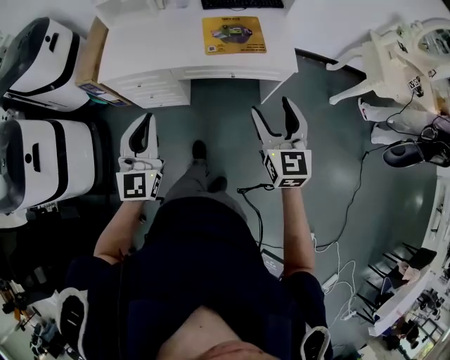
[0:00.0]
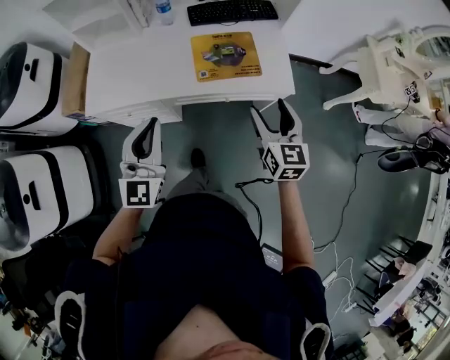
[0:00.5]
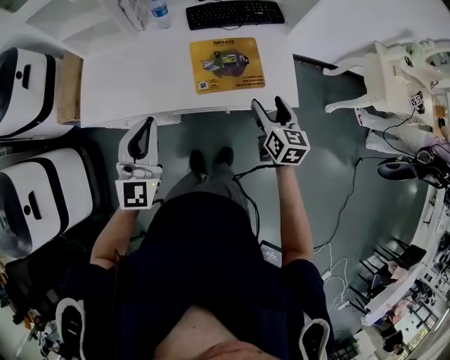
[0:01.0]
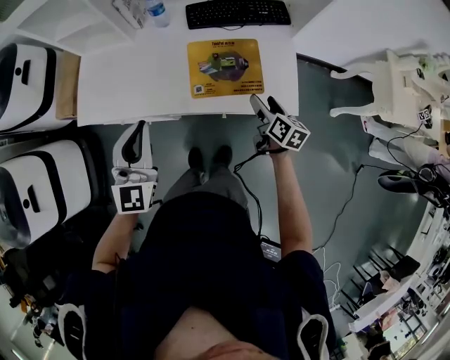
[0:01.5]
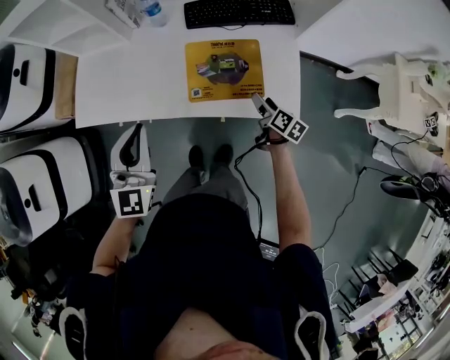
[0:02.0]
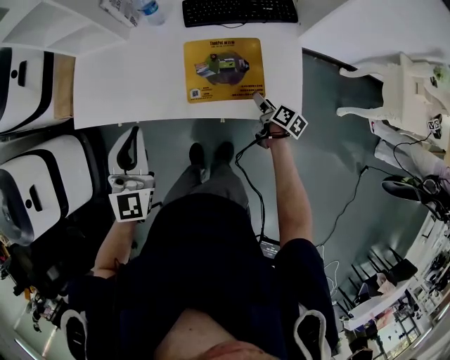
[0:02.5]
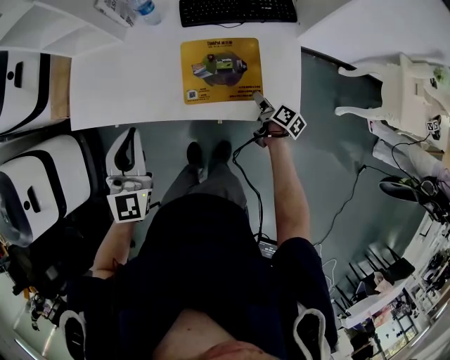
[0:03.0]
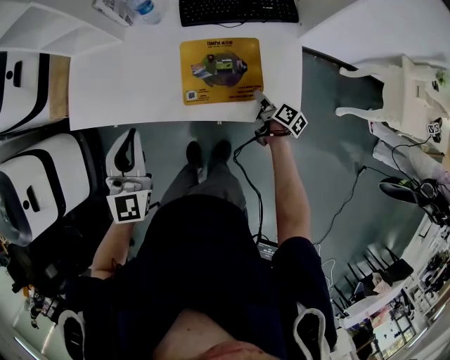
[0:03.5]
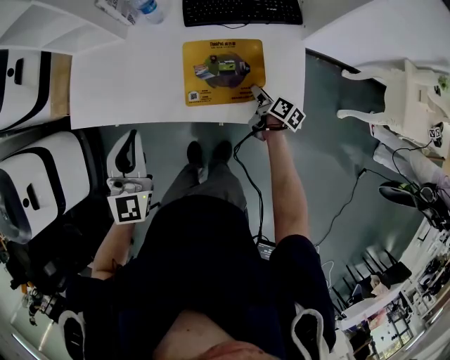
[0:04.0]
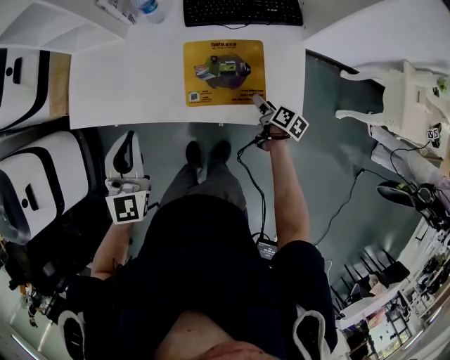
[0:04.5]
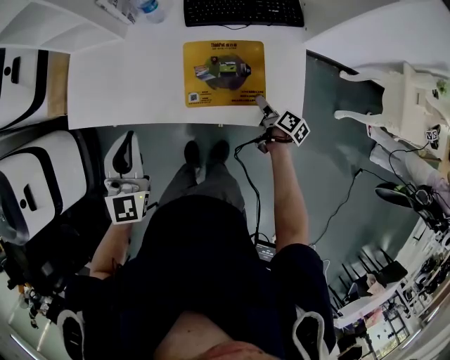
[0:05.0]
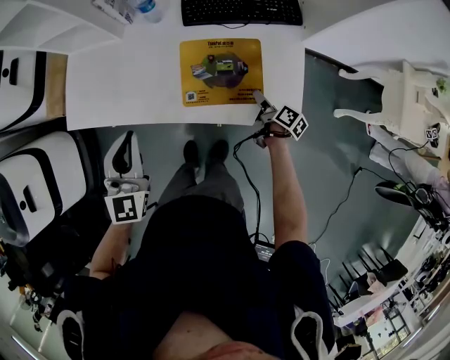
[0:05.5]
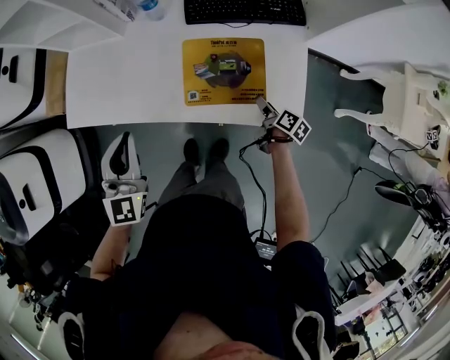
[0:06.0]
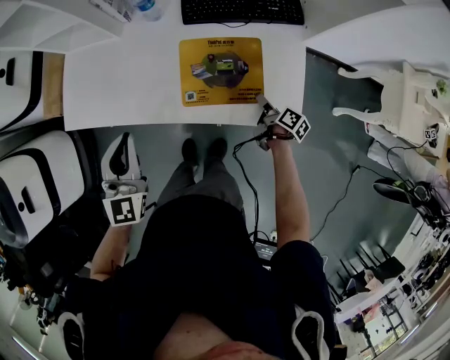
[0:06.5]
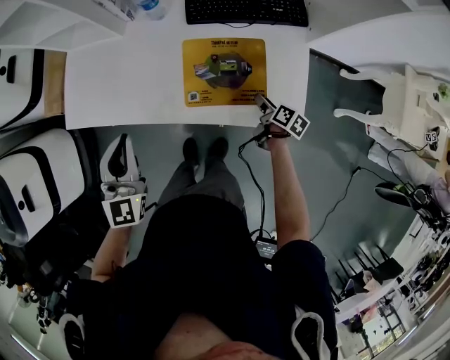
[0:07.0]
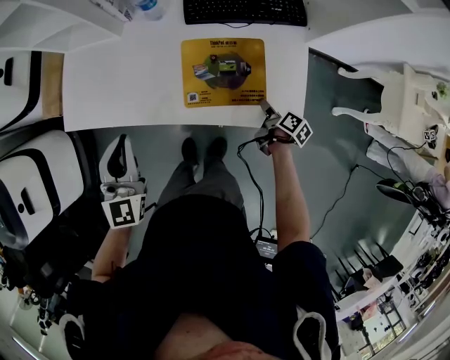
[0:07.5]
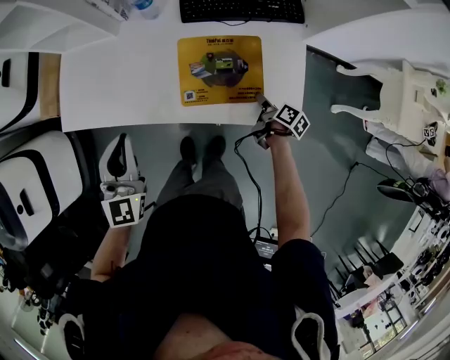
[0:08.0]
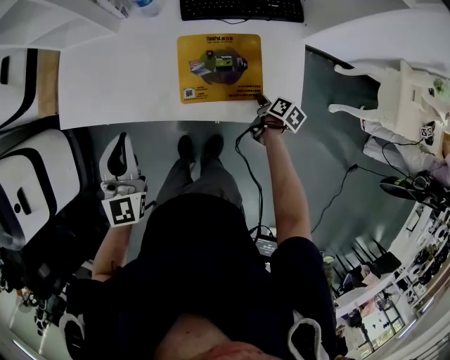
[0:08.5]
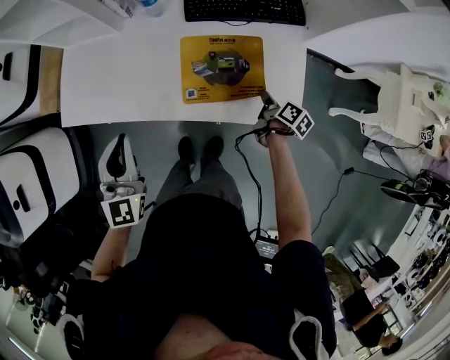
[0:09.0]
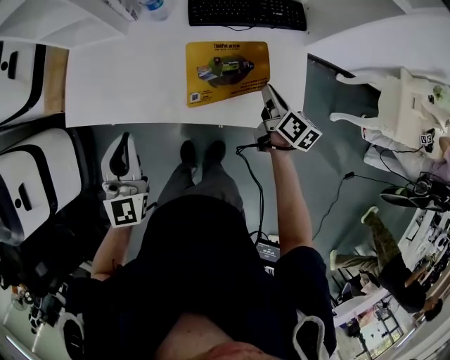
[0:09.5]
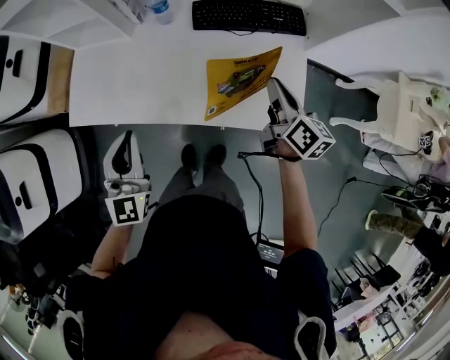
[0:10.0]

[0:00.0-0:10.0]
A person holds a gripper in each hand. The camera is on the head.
0.0 to 2.0 s: The right gripper travels forward and downward by some 50 cm, and twists about 60 degrees clockwise, seen from behind. The left gripper moves forward, some 30 cm.
2.0 to 4.0 s: The right gripper heads forward and downward, covering some 10 cm, and closes.
4.0 to 6.0 s: The grippers move only a little.
6.0 to 8.0 s: The right gripper closes.
8.0 to 10.0 s: The right gripper is displaced upward by some 25 cm, turns by approximately 40 degrees, and closes.

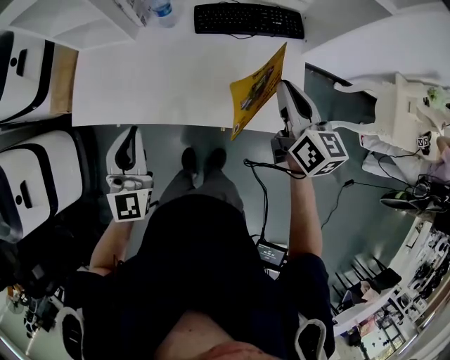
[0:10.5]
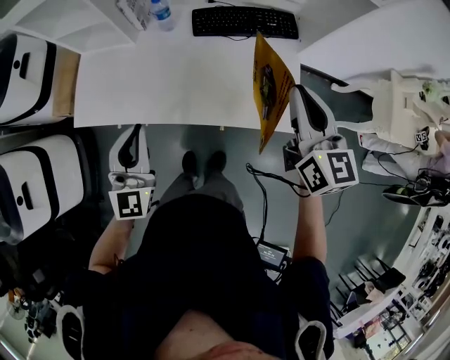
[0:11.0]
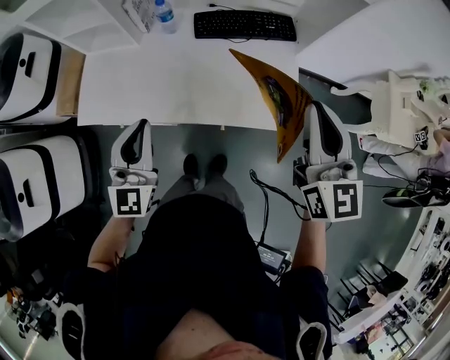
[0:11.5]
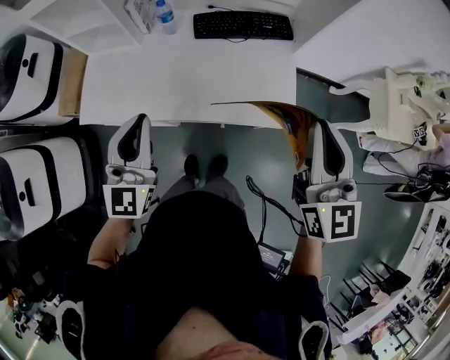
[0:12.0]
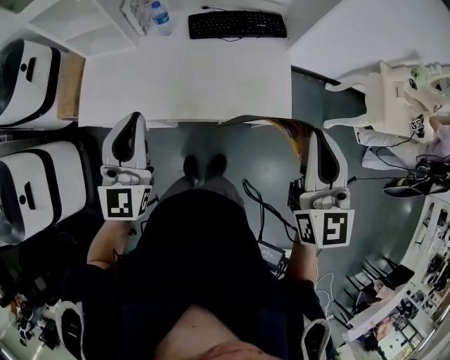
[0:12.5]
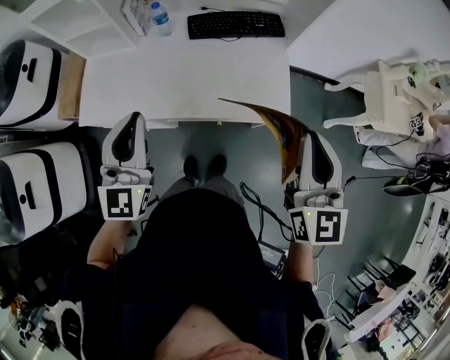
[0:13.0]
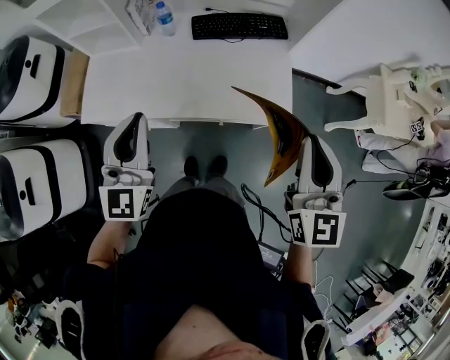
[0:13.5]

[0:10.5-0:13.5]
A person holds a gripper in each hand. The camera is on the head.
10.5 to 12.0 s: The left gripper is displaced upward by about 10 cm. The right gripper moves upward and backward, approximately 20 cm, and changes its angle by roughly 30 degrees.
12.0 to 13.5 s: The right gripper moves backward, approximately 5 cm.

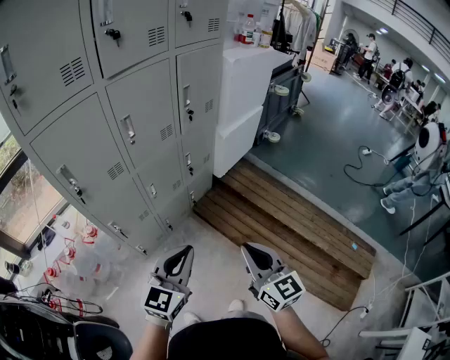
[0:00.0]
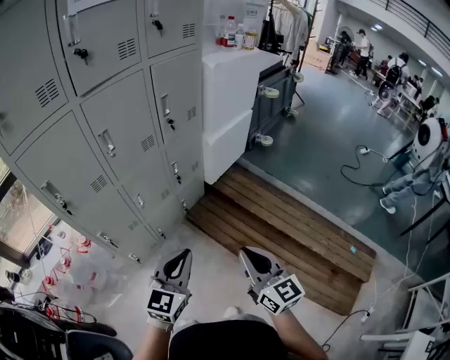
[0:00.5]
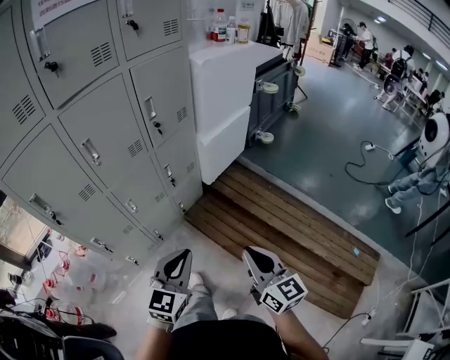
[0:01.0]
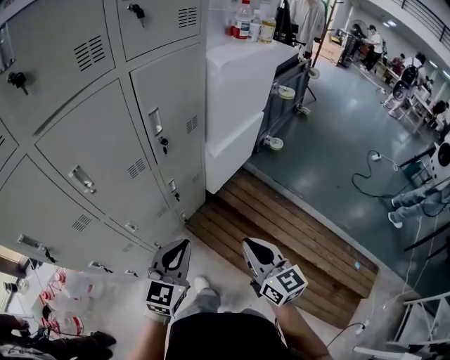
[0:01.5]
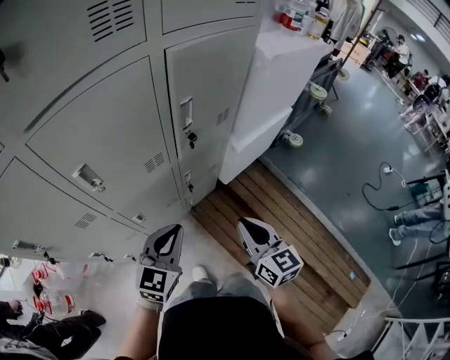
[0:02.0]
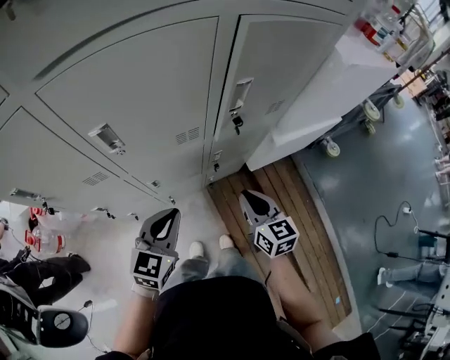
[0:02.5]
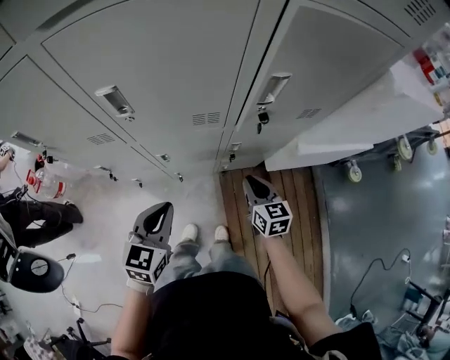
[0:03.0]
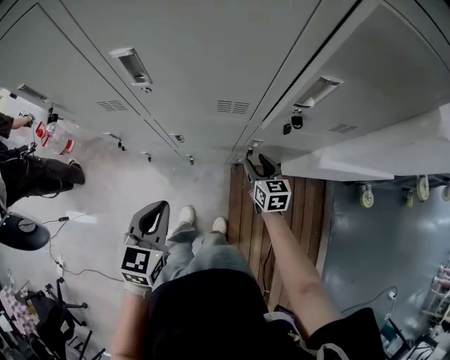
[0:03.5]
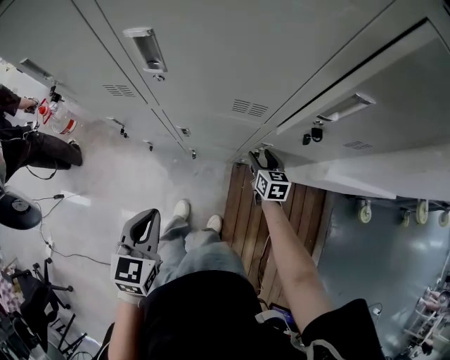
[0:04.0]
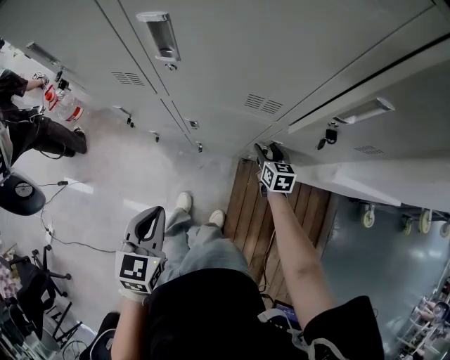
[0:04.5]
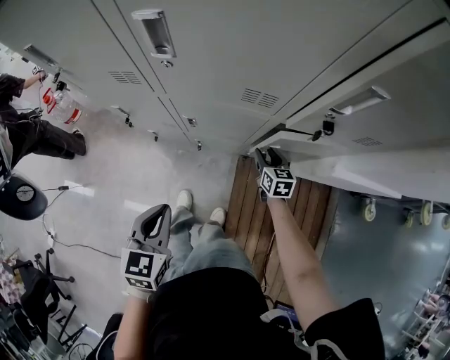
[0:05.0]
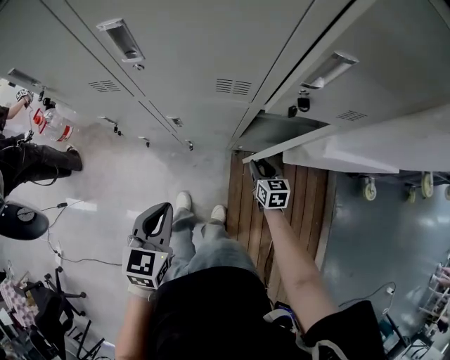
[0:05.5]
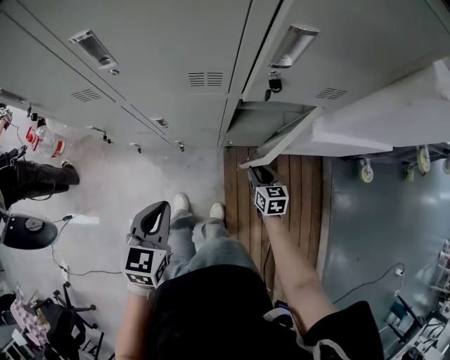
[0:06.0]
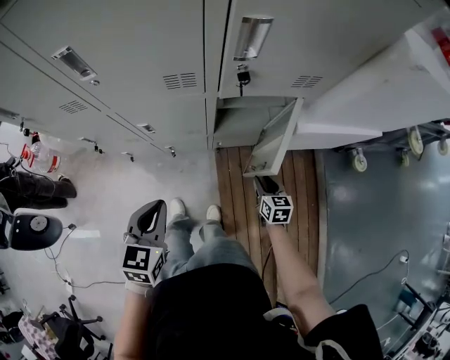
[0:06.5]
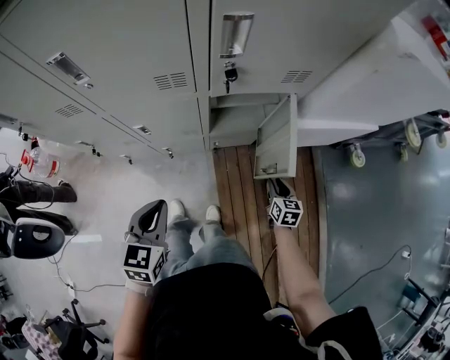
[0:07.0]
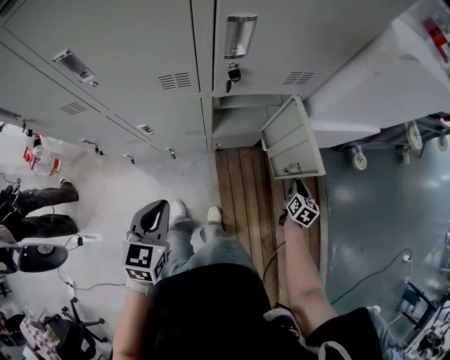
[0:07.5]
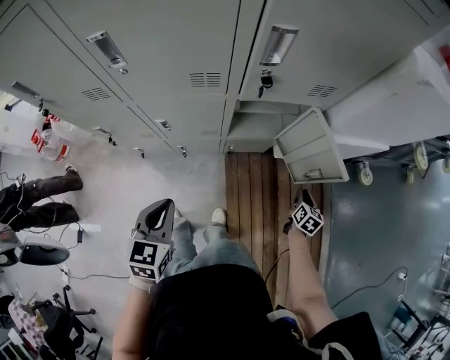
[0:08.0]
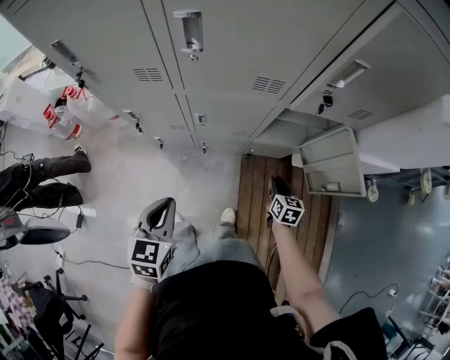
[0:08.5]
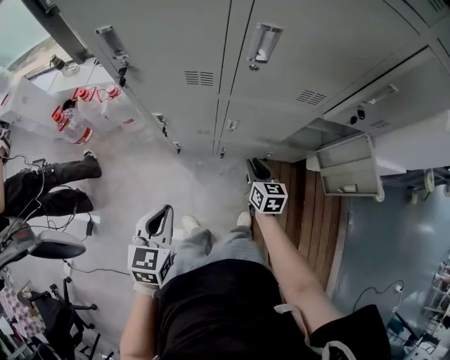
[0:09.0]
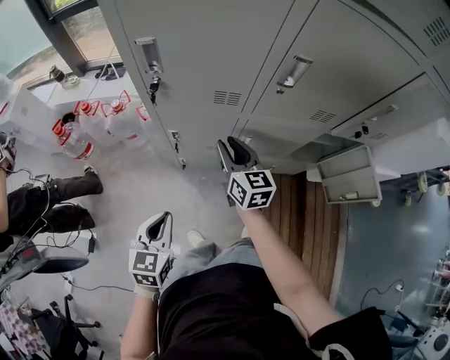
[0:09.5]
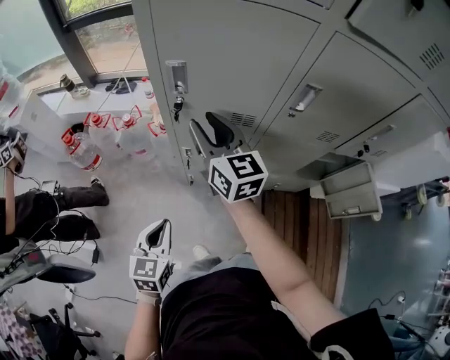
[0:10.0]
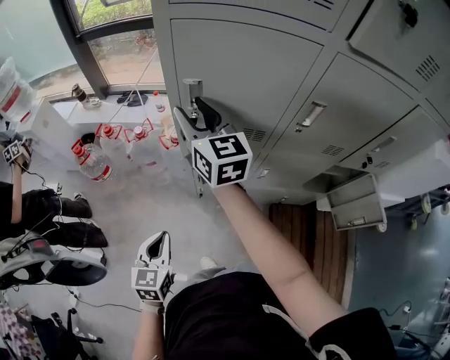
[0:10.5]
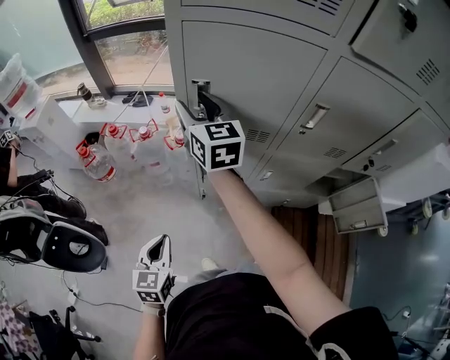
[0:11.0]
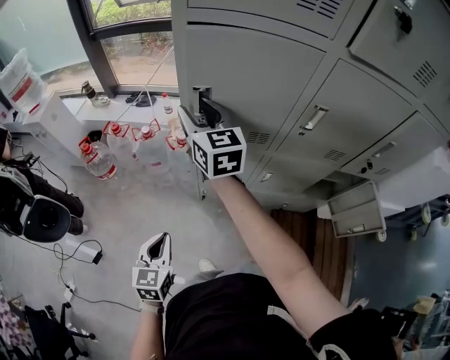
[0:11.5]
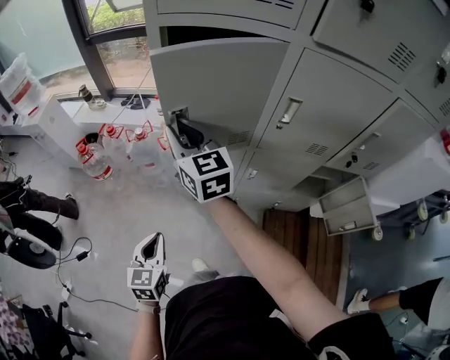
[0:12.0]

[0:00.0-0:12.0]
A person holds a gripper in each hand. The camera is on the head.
0.0 to 2.0 s: The two grippers go roughly 35 cm forward.
2.0 to 4.0 s: The left gripper heads downward, covering some 10 cm, and rotates about 60 degrees; the right gripper moves downward, approximately 30 cm, changes its angle by some 40 degrees, and opens up.
4.0 to 6.0 s: The right gripper goes roughly 15 cm backward, and closes its fingers. Meanwhile the left gripper moves to the right, approximately 5 cm.
6.0 to 8.0 s: The right gripper heads to the right, covering roughly 25 cm, and swivels approximately 40 degrees.
8.0 to 10.0 s: The right gripper shifts by roughly 90 cm, and points its fingers some 40 degrees further upward. Meanwhile the left gripper ends up roughly 40 cm from where it was.
10.0 to 12.0 s: The right gripper heads to the left and upward, covering approximately 10 cm, and moves some 5 cm forward and comes back. Meanwhile the left gripper goes about 5 cm backward.

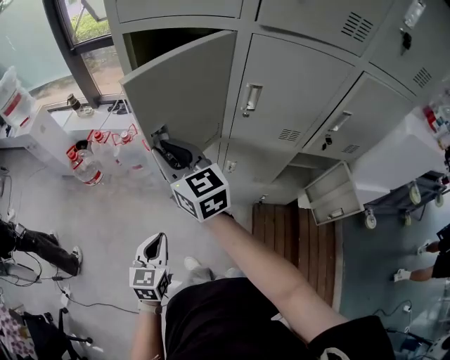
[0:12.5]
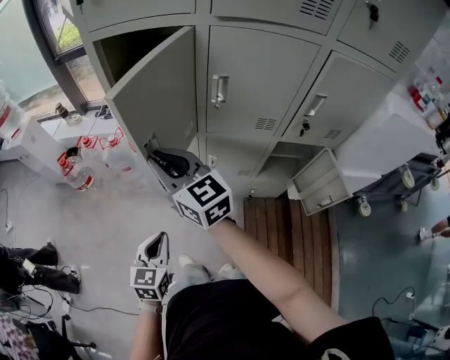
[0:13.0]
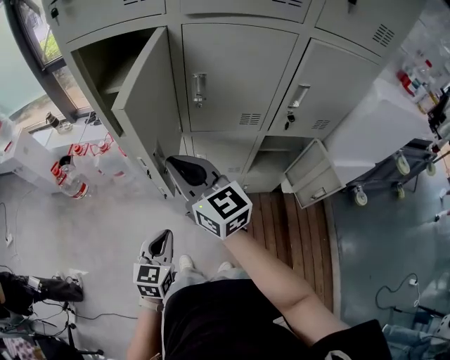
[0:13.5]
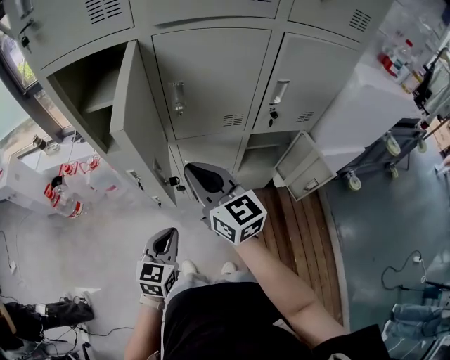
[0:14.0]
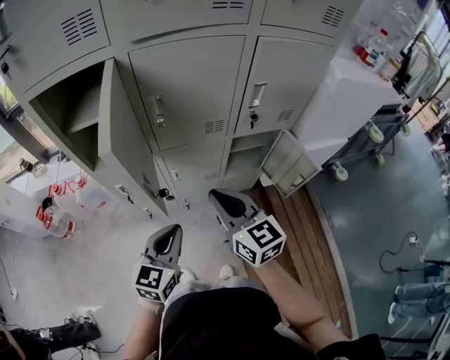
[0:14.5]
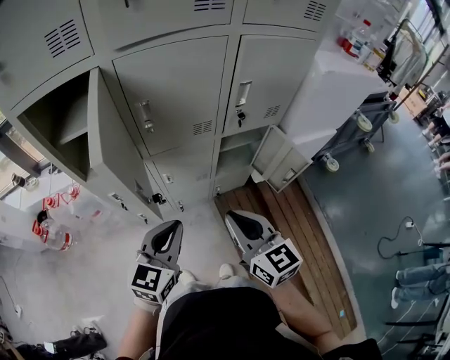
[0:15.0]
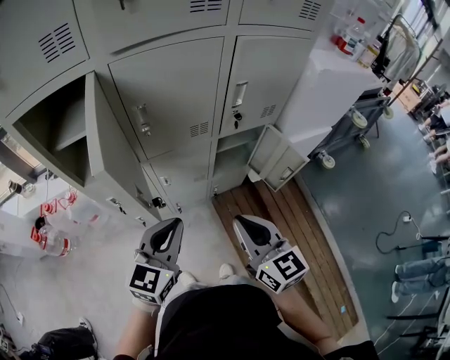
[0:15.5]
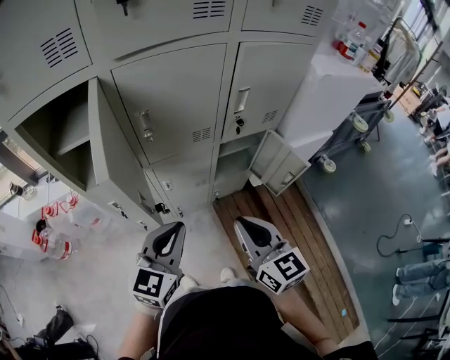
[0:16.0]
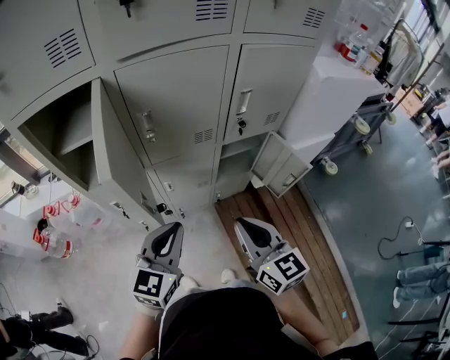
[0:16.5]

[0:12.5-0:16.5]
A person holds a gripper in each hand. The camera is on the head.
12.5 to 14.5 s: The right gripper moves roughly 30 cm, and rotates approximately 30 degrees. Meanwhile the left gripper ends up roughly 20 cm from where it was, and swivels roughly 30 degrees.
14.5 to 16.5 s: The left gripper shifts approximately 5 cm upward, while the right gripper goes some 10 cm to the right and backward.
